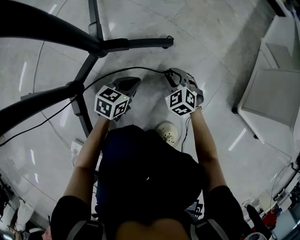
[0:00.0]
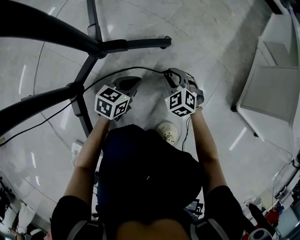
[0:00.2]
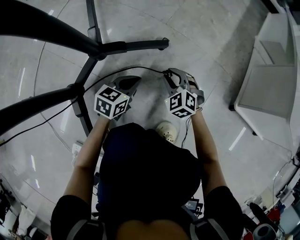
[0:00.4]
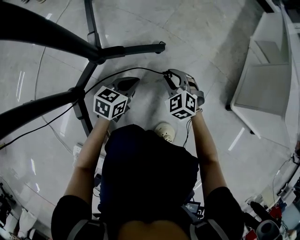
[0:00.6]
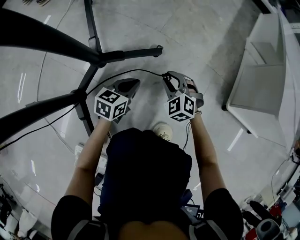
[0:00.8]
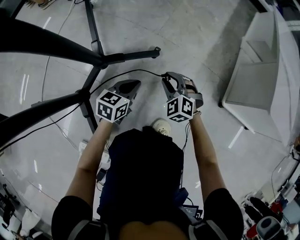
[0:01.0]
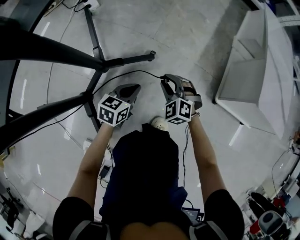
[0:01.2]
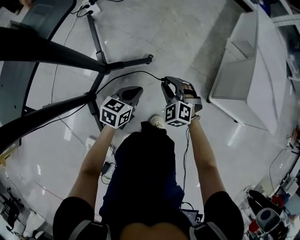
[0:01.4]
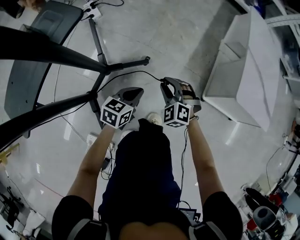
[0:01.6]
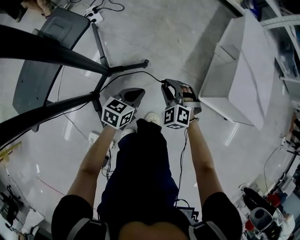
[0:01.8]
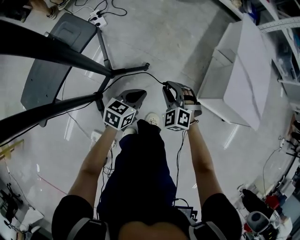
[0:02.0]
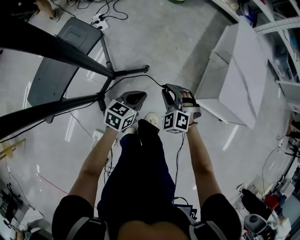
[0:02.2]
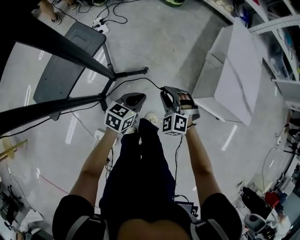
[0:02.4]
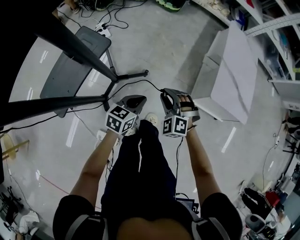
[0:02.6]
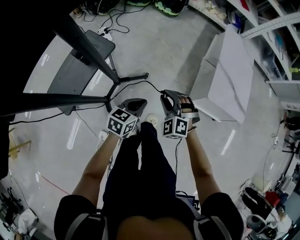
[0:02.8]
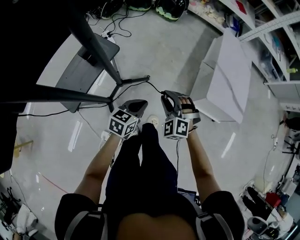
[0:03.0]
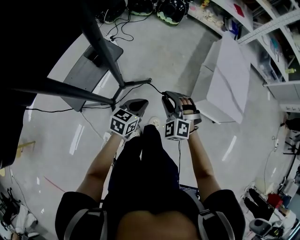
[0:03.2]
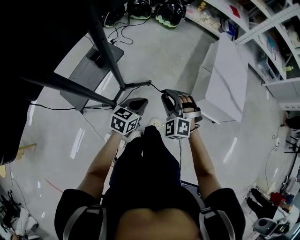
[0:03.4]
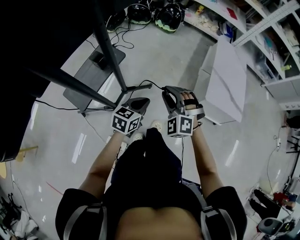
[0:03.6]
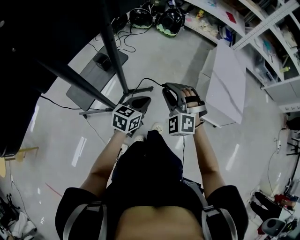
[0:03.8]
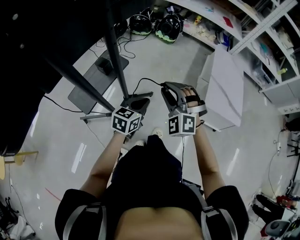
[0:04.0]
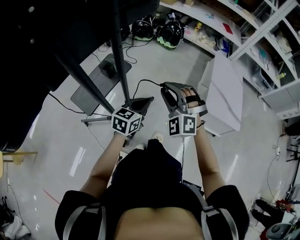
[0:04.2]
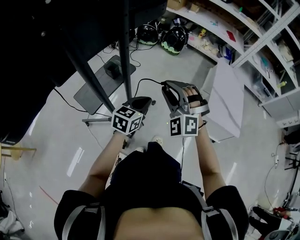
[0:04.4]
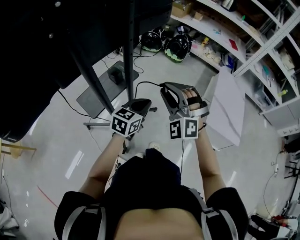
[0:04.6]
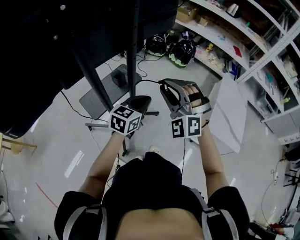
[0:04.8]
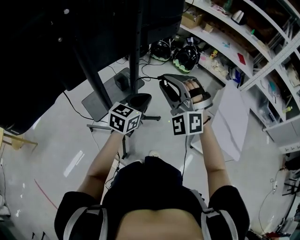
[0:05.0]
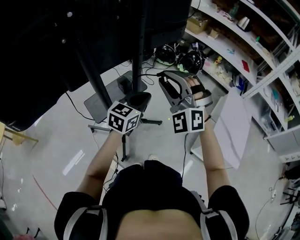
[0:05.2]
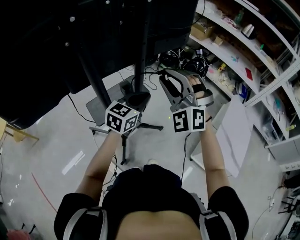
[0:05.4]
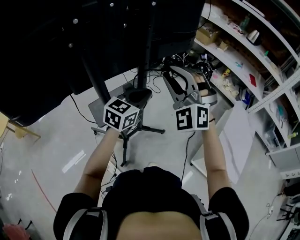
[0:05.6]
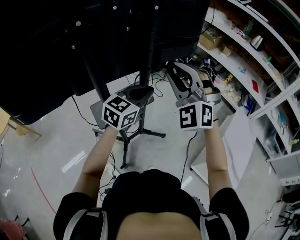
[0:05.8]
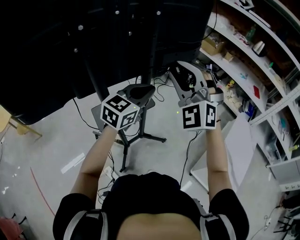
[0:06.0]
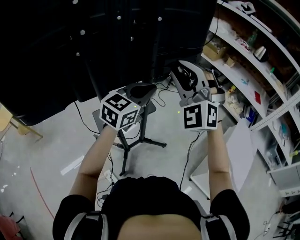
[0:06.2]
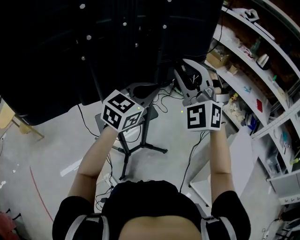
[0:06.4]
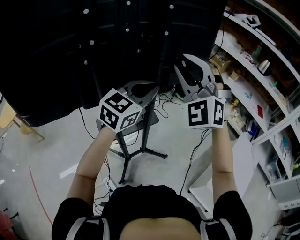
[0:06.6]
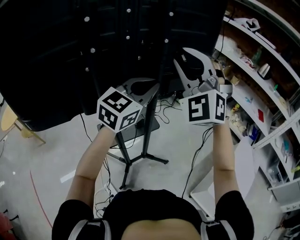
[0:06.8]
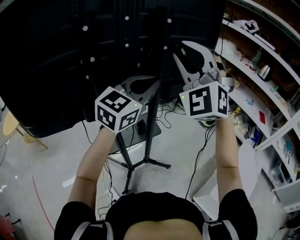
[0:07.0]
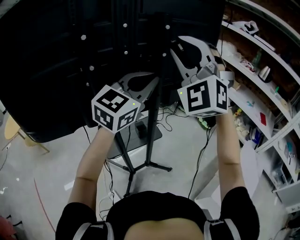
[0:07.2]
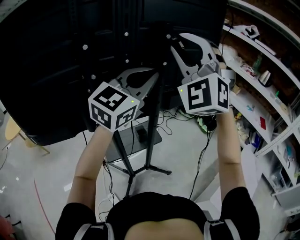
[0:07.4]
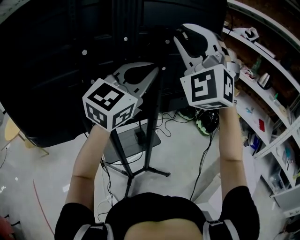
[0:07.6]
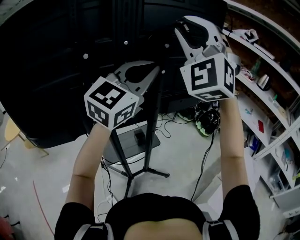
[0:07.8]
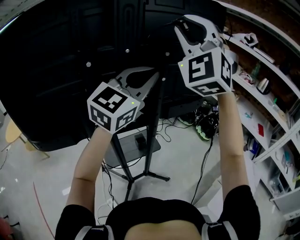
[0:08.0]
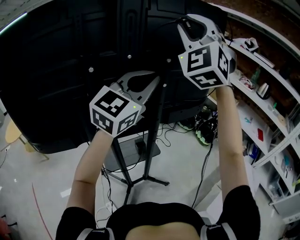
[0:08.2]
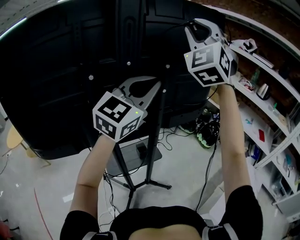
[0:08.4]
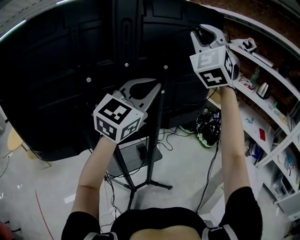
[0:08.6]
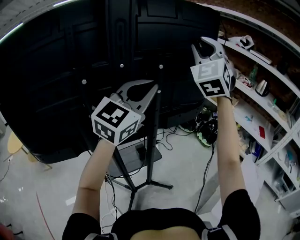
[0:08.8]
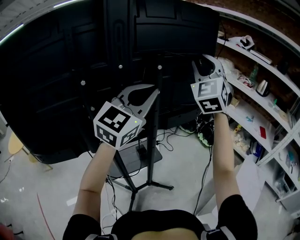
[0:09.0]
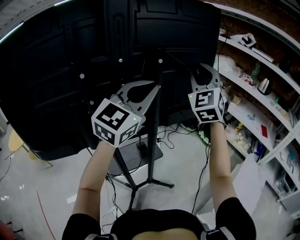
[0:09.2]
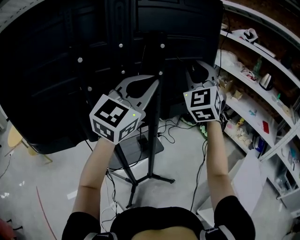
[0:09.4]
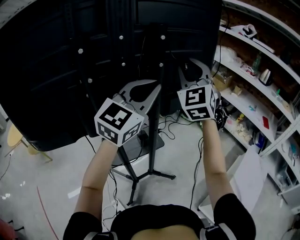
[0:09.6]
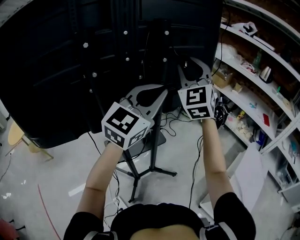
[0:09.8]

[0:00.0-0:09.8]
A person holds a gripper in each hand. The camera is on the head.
0:00.0 to 0:01.4: Both grippers travel together upward, approximately 25 cm.
0:01.4 to 0:02.8: Both grippers travel together upward, approximately 40 cm.
0:02.8 to 0:04.2: The grippers both shift upward by roughly 20 cm. The right gripper rotates roughly 20 degrees.
0:04.2 to 0:05.6: The left gripper heads upward, forward and to the left, covering about 20 cm, and swivels approximately 20 degrees, while the right gripper goes approximately 25 cm upward, to the left and forward, and rotates some 30 degrees.
0:05.6 to 0:07.0: Both grippers travel together upward, about 20 cm. The left gripper changes its angle by some 20 degrees.
0:07.0 to 0:08.4: The right gripper shifts roughly 25 cm upward and forward. Meanwhile the left gripper moves upward, approximately 15 cm.
0:08.4 to 0:09.8: The left gripper heads downward, covering roughly 10 cm. Meanwhile the right gripper travels downward by some 25 cm, and swivels some 20 degrees.

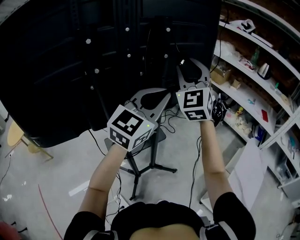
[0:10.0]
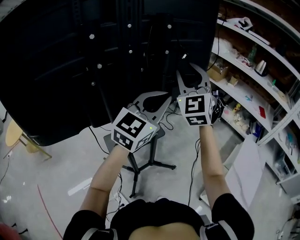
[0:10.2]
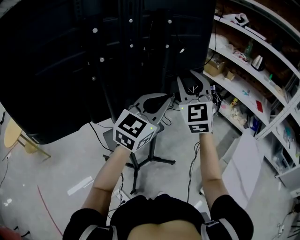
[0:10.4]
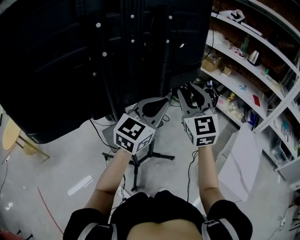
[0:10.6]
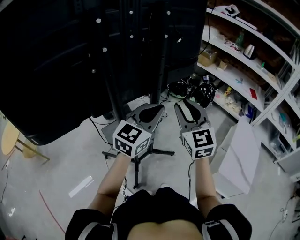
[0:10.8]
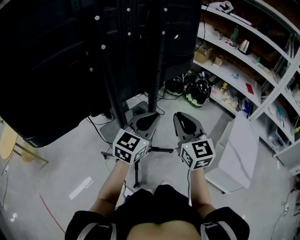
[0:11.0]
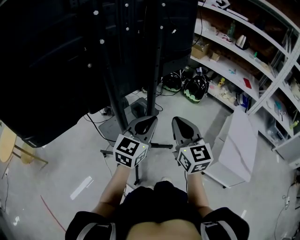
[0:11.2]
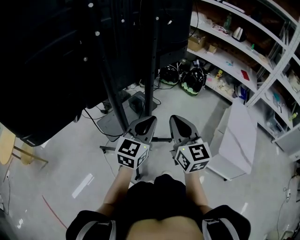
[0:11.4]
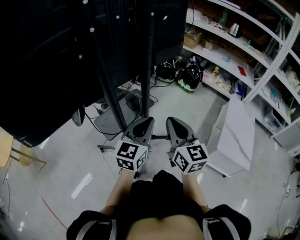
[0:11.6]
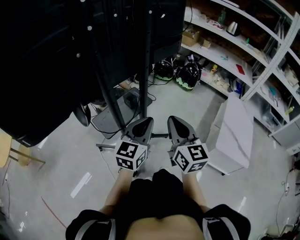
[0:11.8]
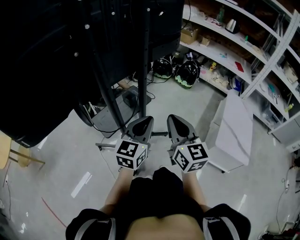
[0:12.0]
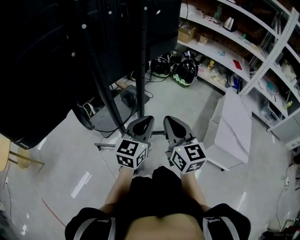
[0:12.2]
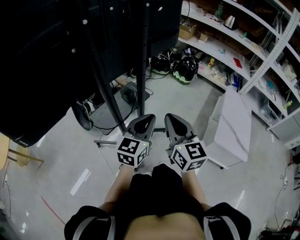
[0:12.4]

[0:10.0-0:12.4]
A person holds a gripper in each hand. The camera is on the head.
0:10.0 to 0:11.2: The left gripper shifts roughly 20 cm downward and backward, while the right gripper is displaced backward and downward by roughly 30 cm, rotates around the line of its fingers by roughly 40 degrees, clockwise from behind, and closes up.
0:11.2 to 0:12.4: The left gripper shifts some 5 cm downward, while the right gripper changes place by some 5 cm.

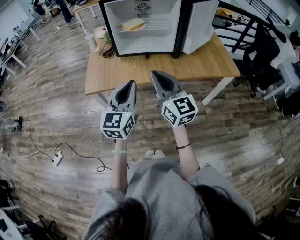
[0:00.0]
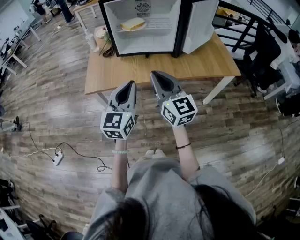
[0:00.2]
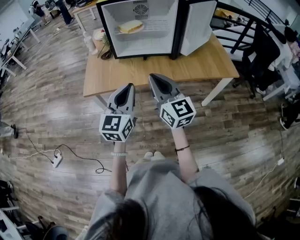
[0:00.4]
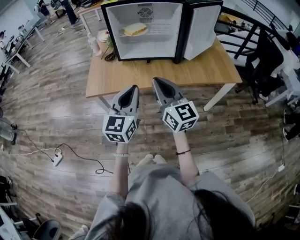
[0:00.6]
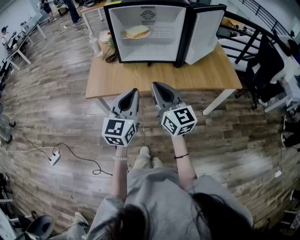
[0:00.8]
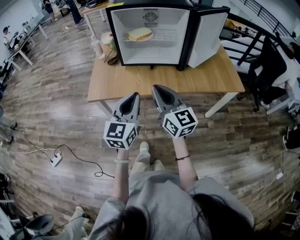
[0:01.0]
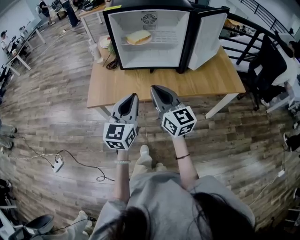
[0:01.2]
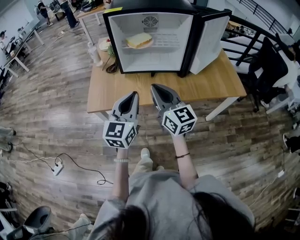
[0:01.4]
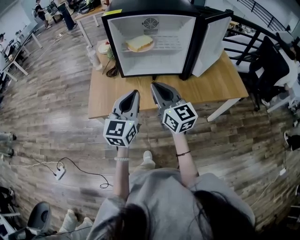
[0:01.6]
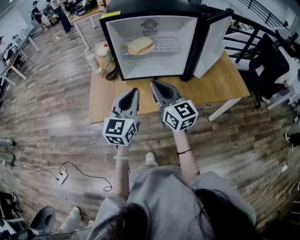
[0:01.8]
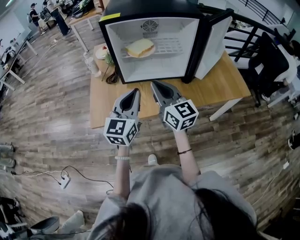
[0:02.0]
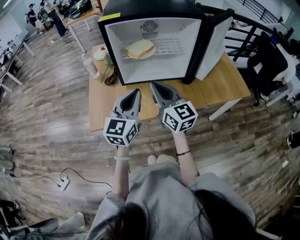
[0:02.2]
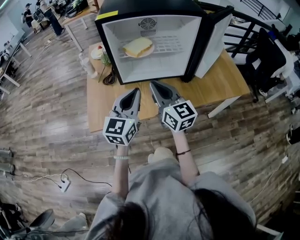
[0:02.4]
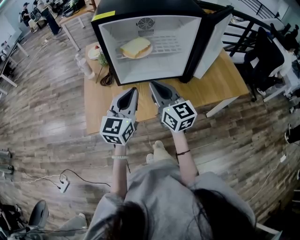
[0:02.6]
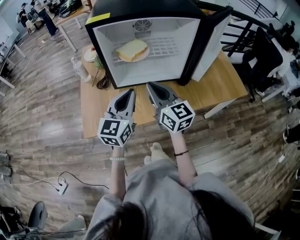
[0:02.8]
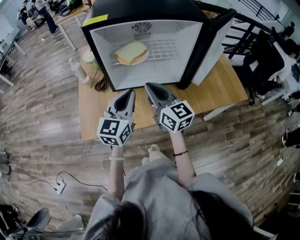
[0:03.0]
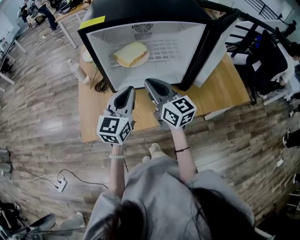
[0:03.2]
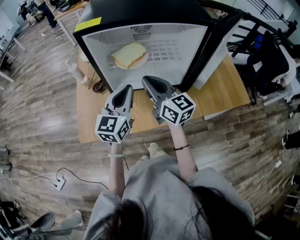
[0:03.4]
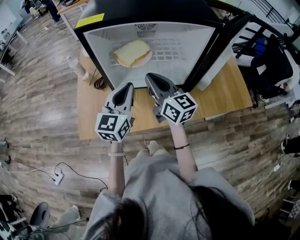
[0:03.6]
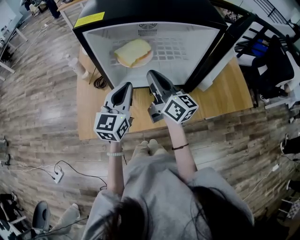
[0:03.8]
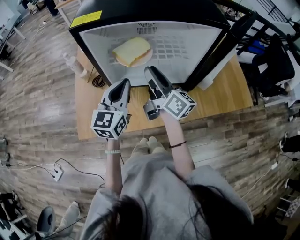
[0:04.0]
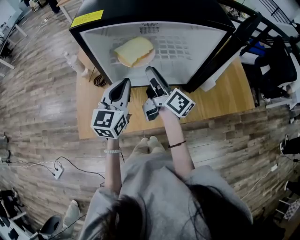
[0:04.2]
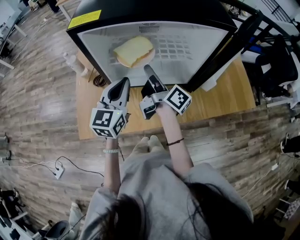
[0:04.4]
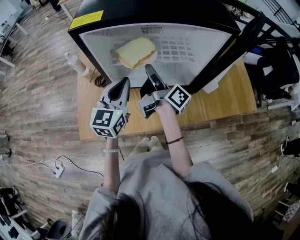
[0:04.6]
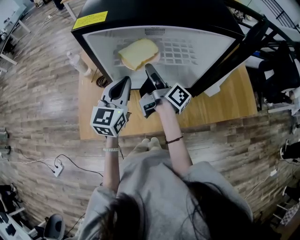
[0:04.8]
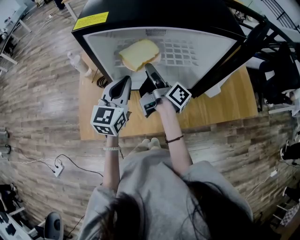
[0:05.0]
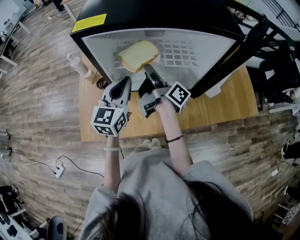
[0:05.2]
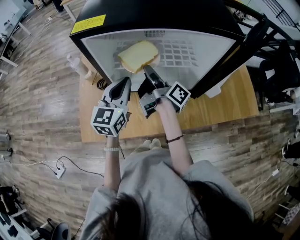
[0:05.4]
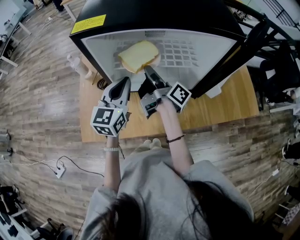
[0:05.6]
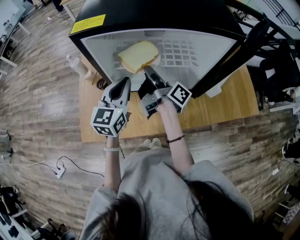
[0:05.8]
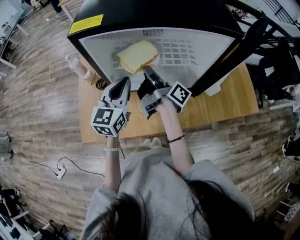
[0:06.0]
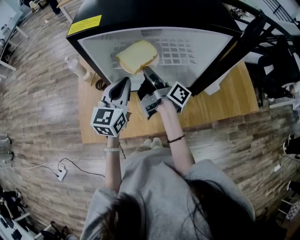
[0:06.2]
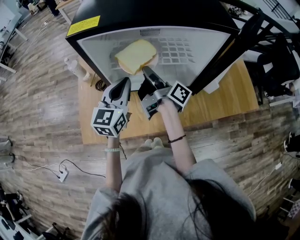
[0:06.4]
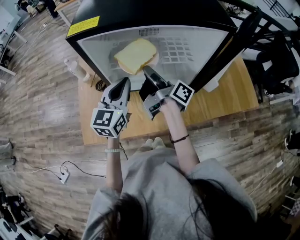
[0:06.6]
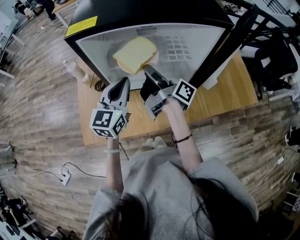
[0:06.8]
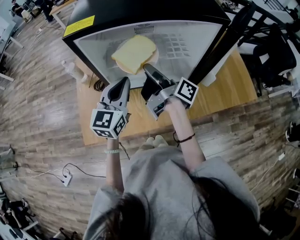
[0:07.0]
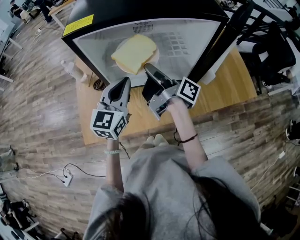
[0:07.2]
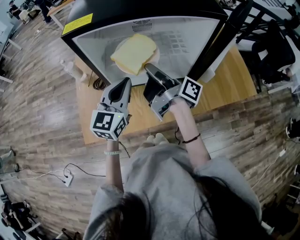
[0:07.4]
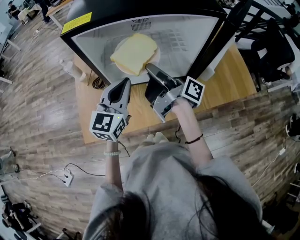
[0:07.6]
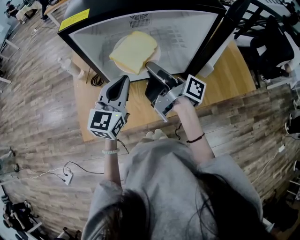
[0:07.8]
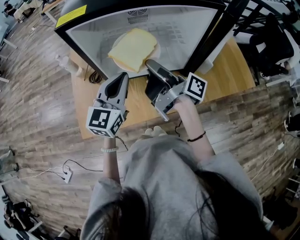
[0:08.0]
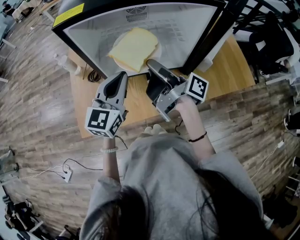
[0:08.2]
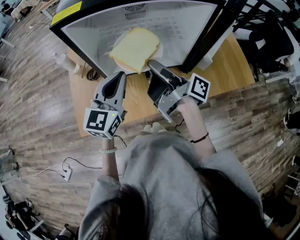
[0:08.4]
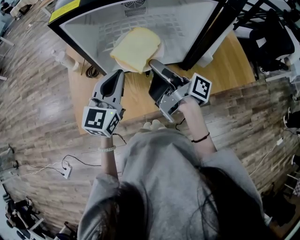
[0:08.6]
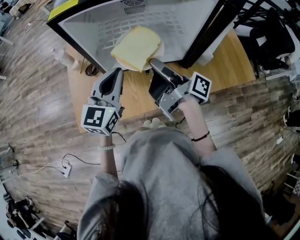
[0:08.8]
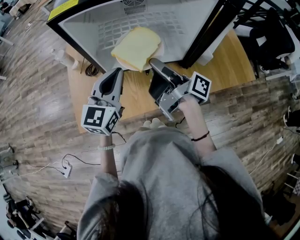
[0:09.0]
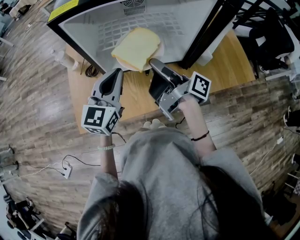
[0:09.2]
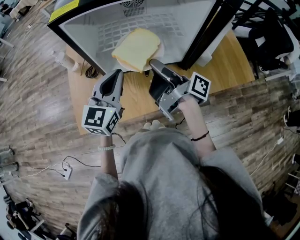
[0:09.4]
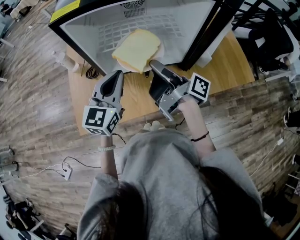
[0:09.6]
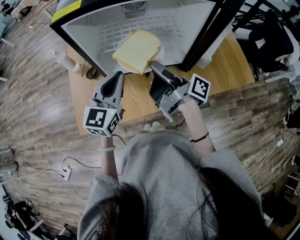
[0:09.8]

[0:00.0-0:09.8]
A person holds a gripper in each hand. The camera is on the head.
0:00.0 to 0:01.4: The grippers both shift forward by approximately 10 cm.
0:01.4 to 0:02.8: Both grippers travel together forward, approximately 15 cm.
0:02.8 to 0:04.2: The two grippers go about 10 cm forward. The right gripper rotates around the line of its fingers by approximately 50 degrees, clockwise from behind, and opens.
0:04.2 to 0:05.6: The right gripper moves roughly 5 cm, and swivels some 30 degrees.
0:05.6 to 0:07.0: The right gripper ends up some 5 cm from where it was.
0:07.0 to 0:08.4: The right gripper moves backward, roughly 5 cm.
0:08.4 to 0:09.8: The grippers move only a little.

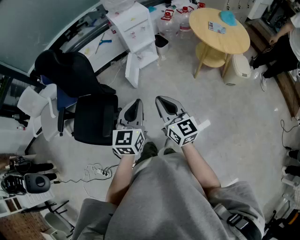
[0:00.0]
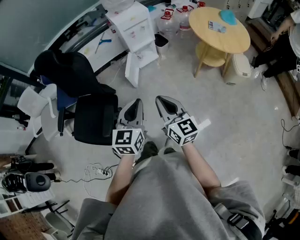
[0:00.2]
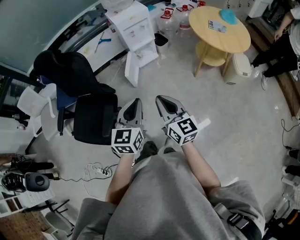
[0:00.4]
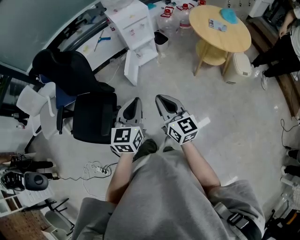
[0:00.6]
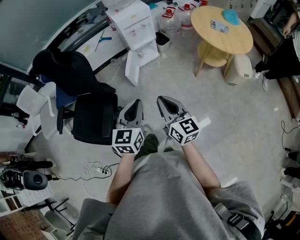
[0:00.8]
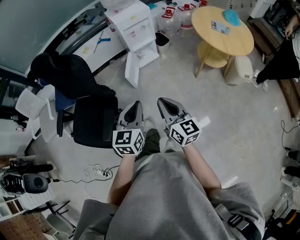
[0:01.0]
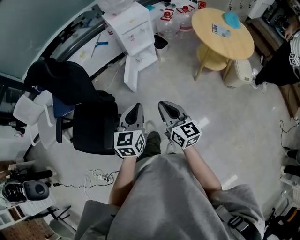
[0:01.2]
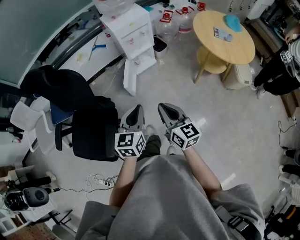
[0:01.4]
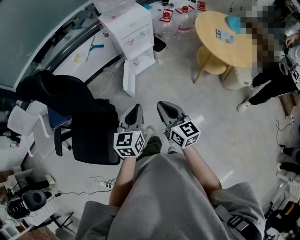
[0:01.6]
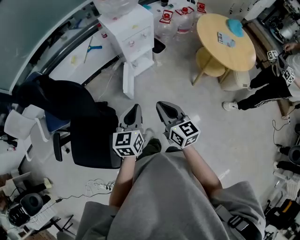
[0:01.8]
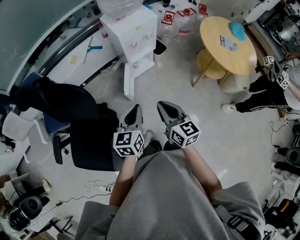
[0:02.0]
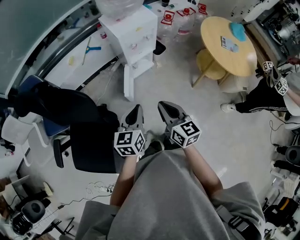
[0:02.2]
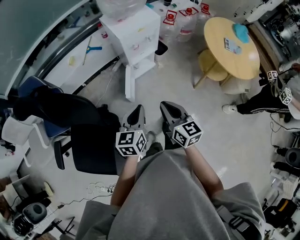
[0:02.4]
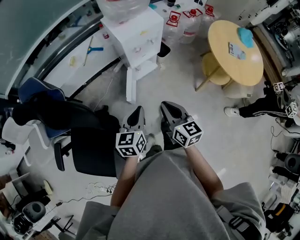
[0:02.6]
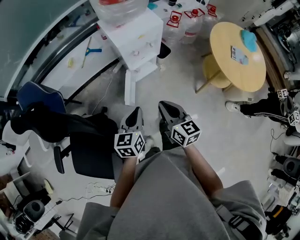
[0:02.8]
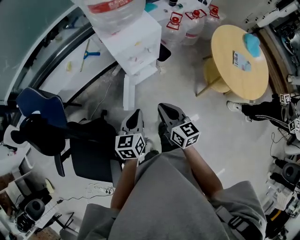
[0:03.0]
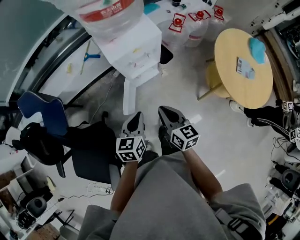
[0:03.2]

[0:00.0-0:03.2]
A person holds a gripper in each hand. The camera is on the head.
0:00.0 to 0:01.6: The two grippers go roughly 20 cm forward.
0:01.6 to 0:03.2: The two grippers go about 30 cm forward.
